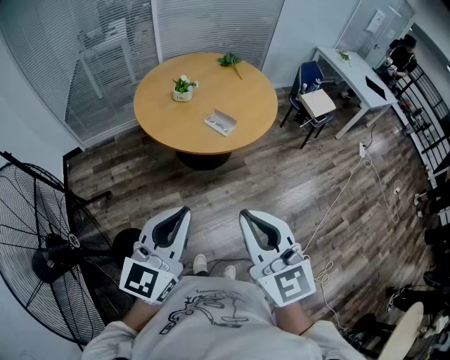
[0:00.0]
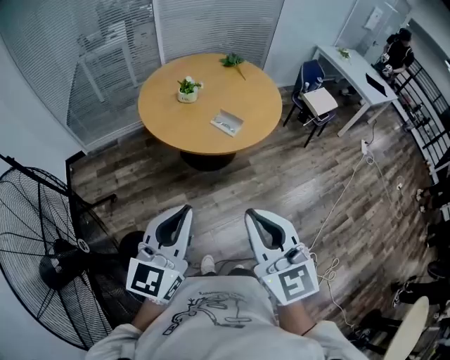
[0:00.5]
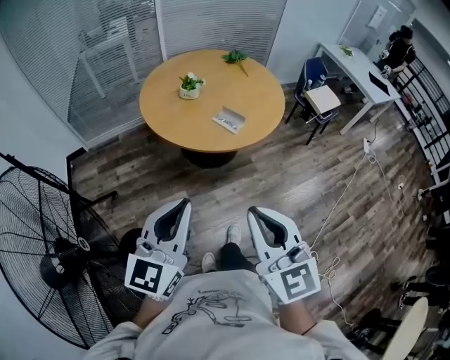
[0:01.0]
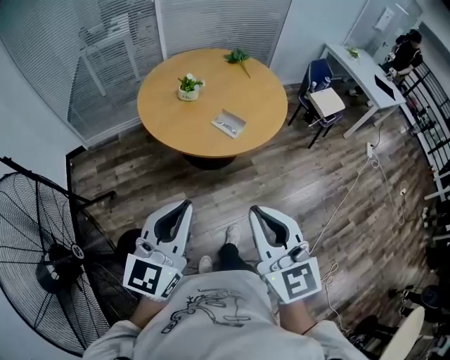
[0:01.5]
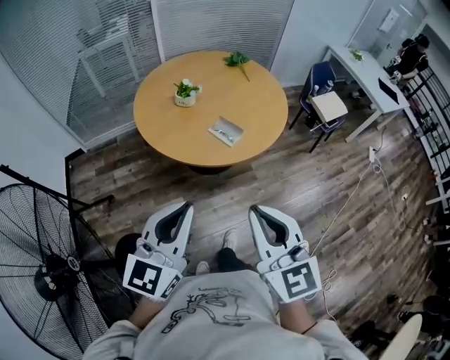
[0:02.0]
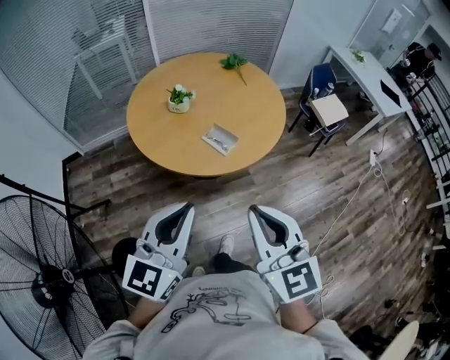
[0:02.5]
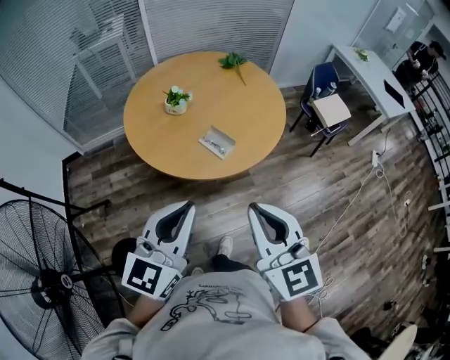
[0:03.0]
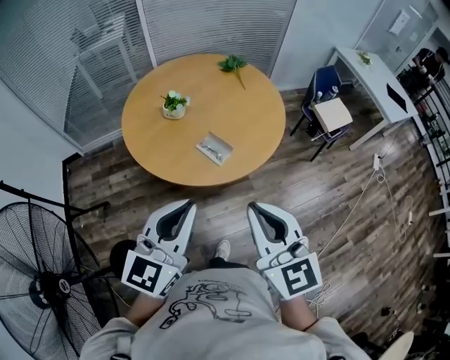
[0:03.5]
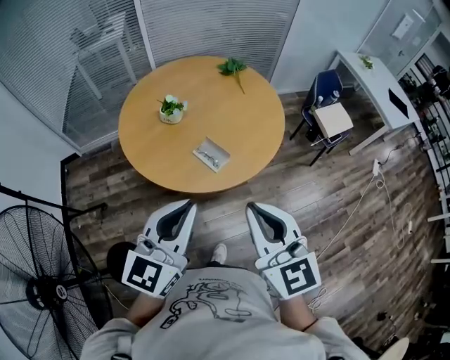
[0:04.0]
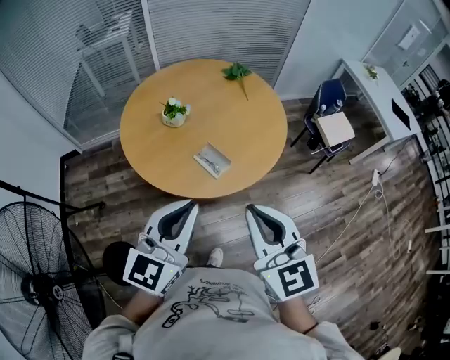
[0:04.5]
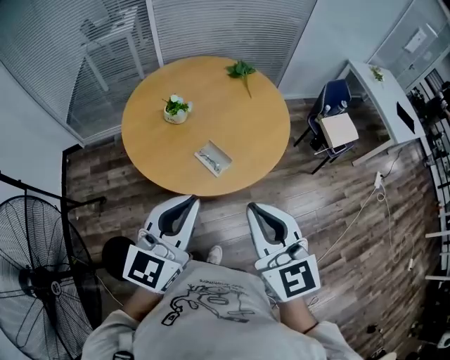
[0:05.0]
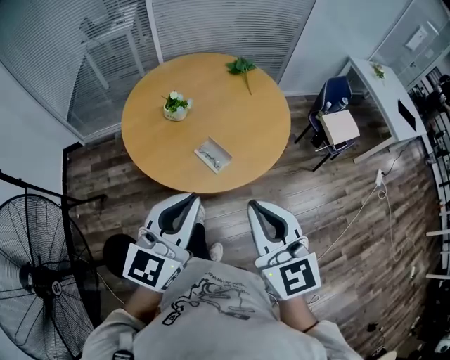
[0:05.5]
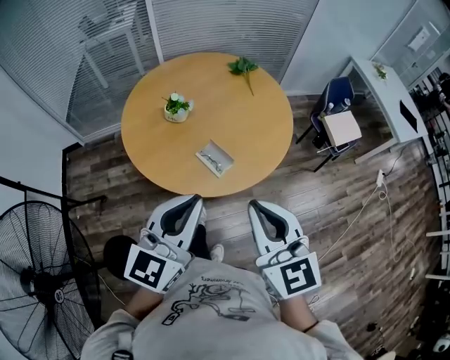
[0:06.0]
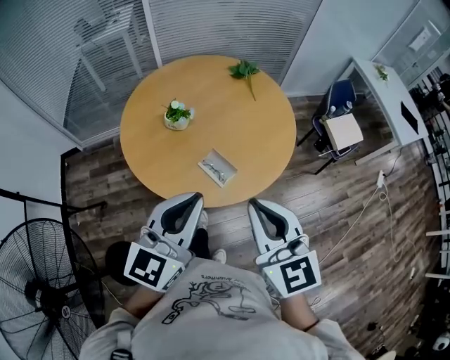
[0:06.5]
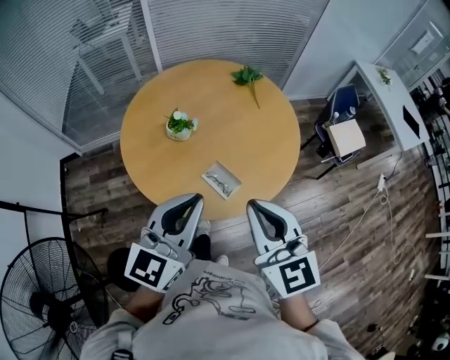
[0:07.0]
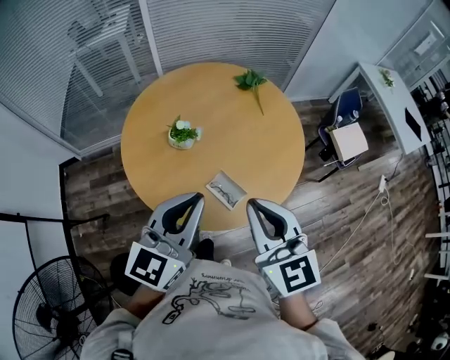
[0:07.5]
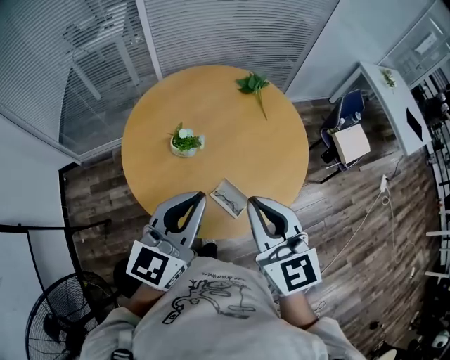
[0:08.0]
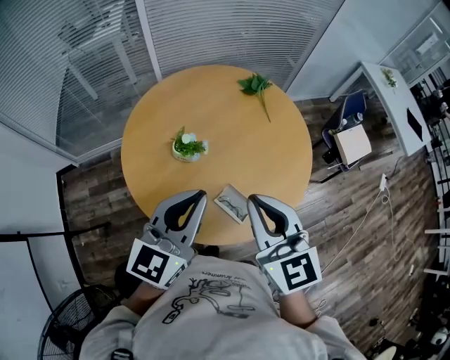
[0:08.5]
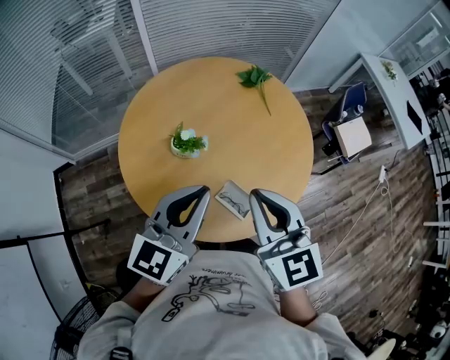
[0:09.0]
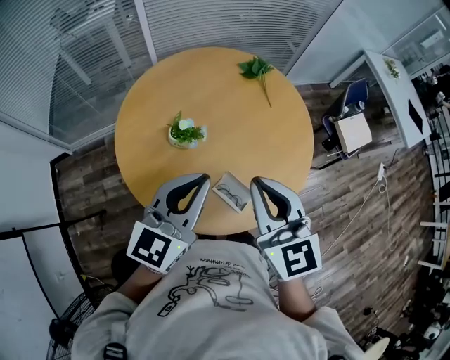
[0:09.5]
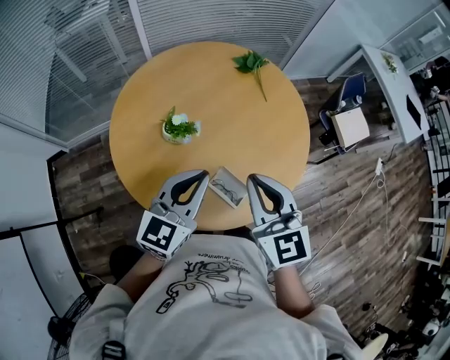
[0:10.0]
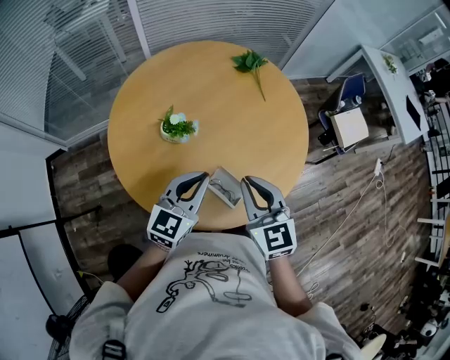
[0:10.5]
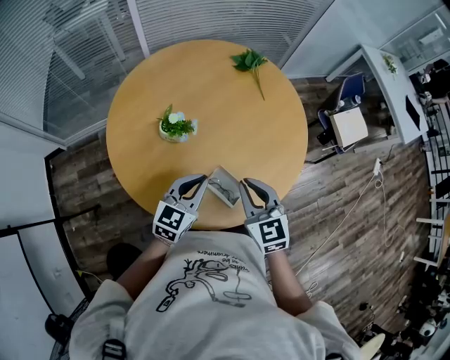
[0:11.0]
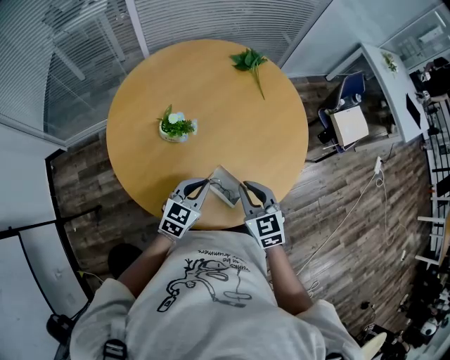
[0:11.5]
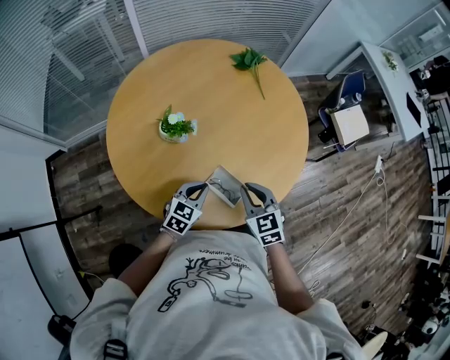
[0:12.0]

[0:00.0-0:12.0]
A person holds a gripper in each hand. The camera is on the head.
0.0 to 2.0 s: Both grippers move forward, roughly 15 cm.
2.0 to 4.0 s: Both grippers move forward and to the right, some 20 cm.
4.0 to 6.0 s: The two grippers go some 5 cm forward.
6.0 to 8.0 s: The left gripper travels forward by some 25 cm, while the right gripper travels forward and to the left by some 25 cm.
8.0 to 10.0 s: The grippers both shift downward and forward by some 10 cm.
10.0 to 12.0 s: The grippers both shift downward by approximately 25 cm. The right gripper swivels some 30 degrees. The left gripper swivels approximately 30 degrees.

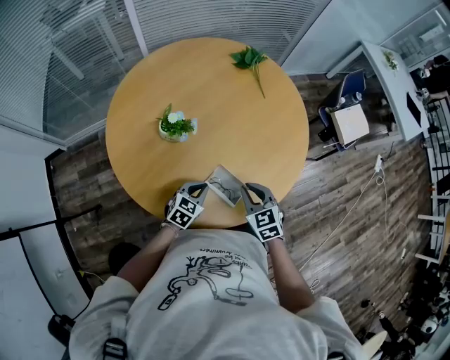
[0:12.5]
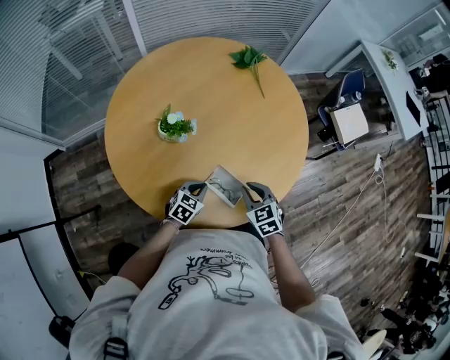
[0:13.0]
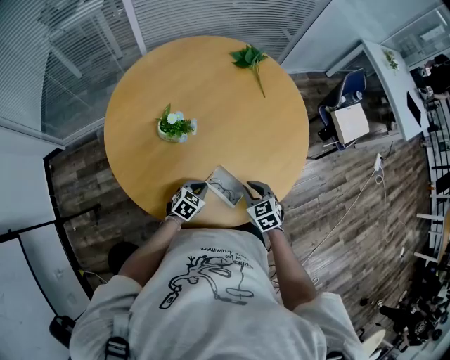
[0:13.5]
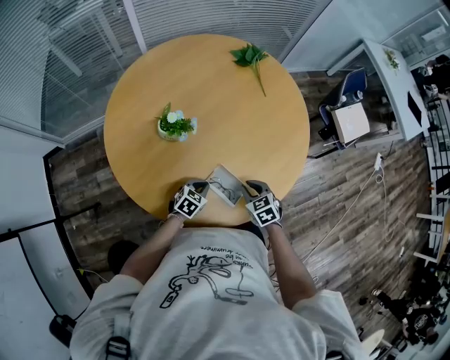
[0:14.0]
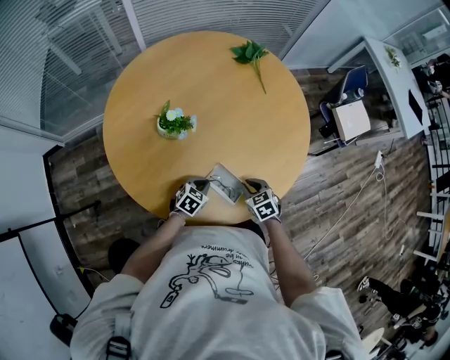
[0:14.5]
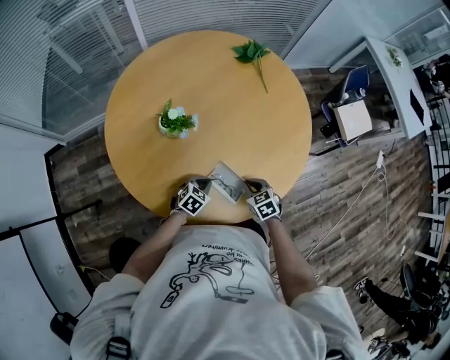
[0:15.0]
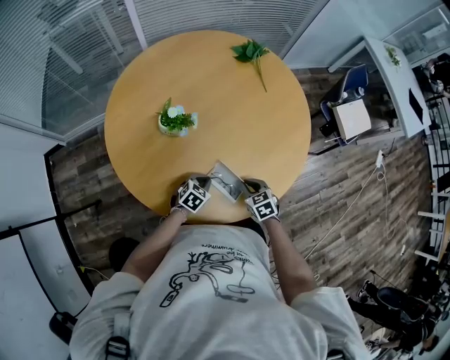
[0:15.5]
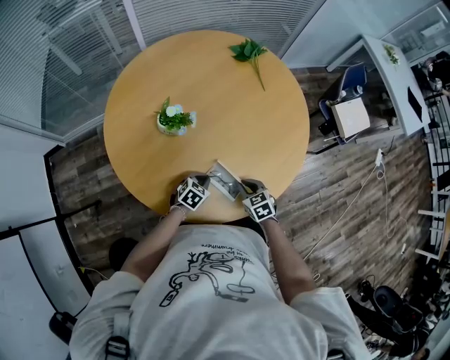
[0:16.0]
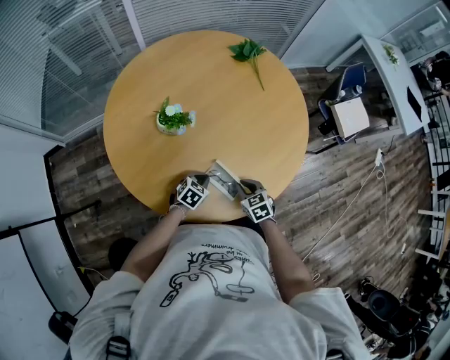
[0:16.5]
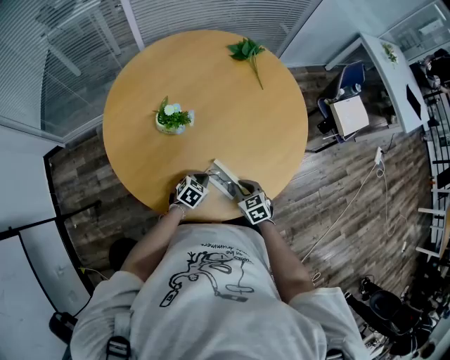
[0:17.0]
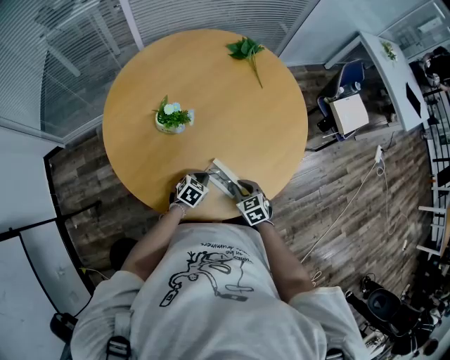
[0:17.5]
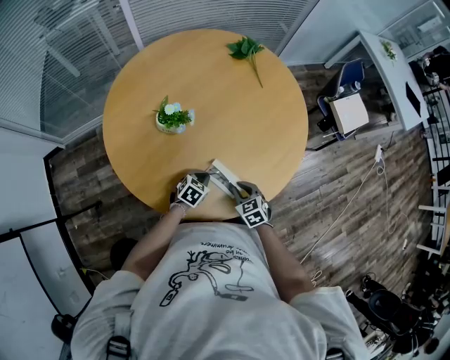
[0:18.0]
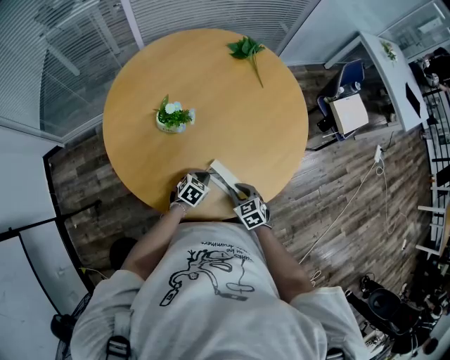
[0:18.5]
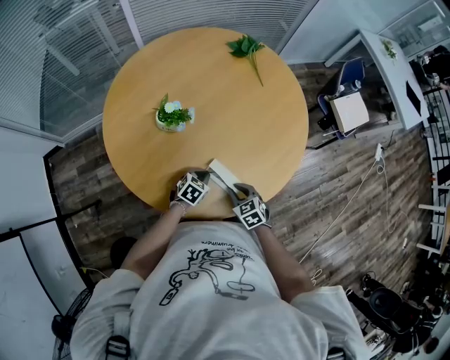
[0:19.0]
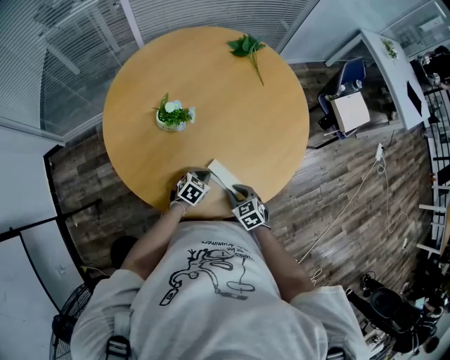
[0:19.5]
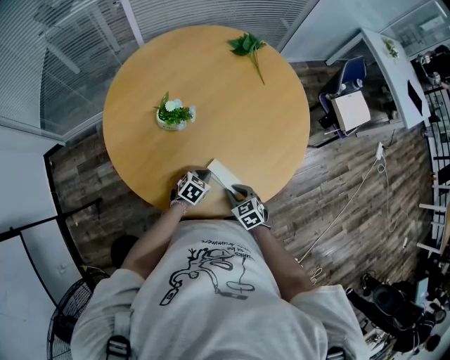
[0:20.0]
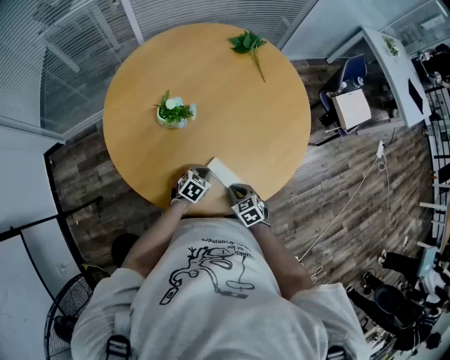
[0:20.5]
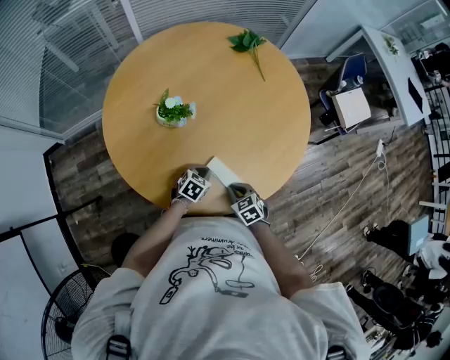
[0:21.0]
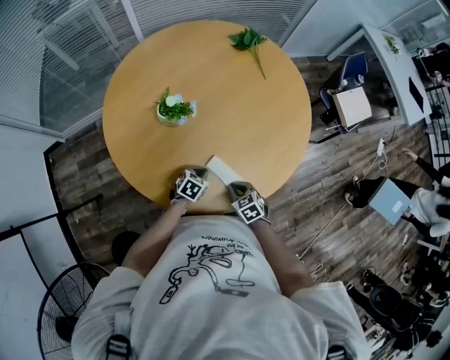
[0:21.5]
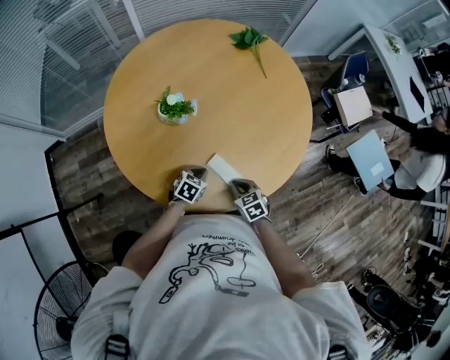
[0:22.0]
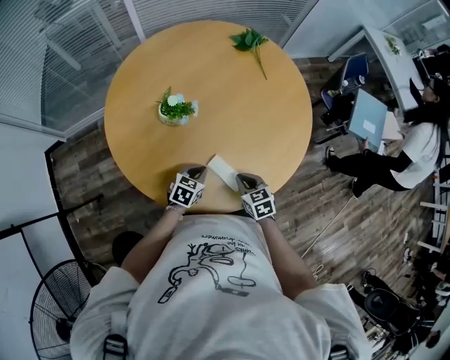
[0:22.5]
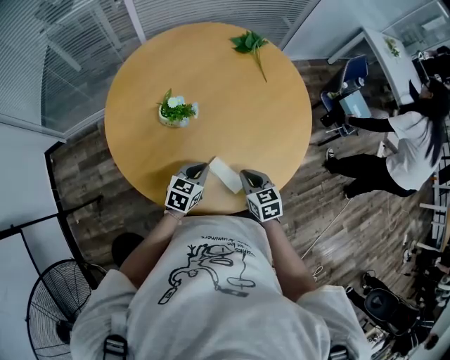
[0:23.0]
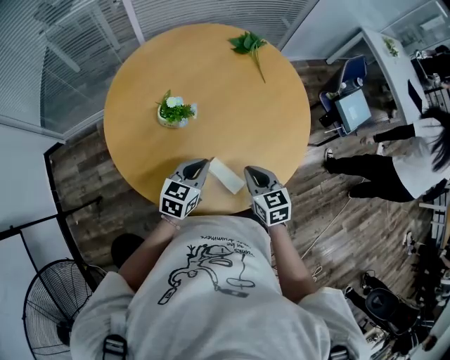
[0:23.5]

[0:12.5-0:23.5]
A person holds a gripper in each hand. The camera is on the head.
12.5 to 14.5 s: The right gripper shifts roughly 15 cm downward. Meanwhile the left gripper travels downward by approximately 10 cm.
14.5 to 18.0 s: The grippers move only a little.
18.0 to 21.5 s: There are only small adjustments of the grippers.
21.5 to 23.5 s: The right gripper goes some 20 cm upward and forward, and swivels roughly 20 degrees; the left gripper travels upward by about 20 cm, and changes its angle by approximately 30 degrees.

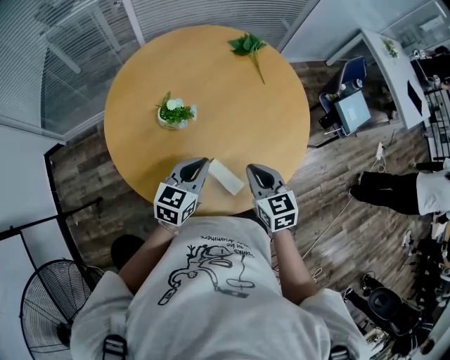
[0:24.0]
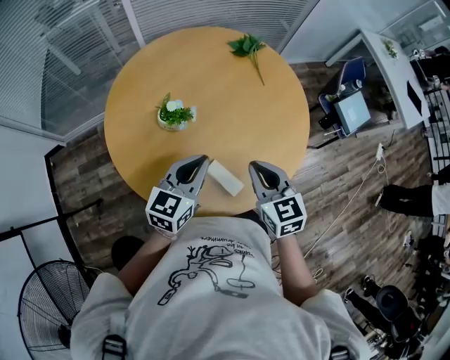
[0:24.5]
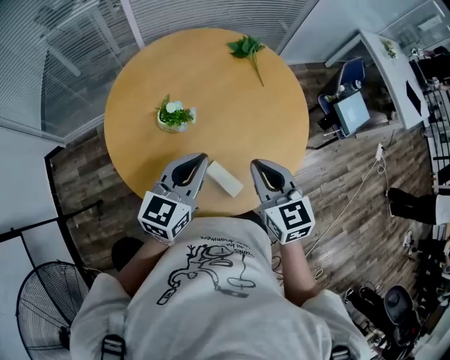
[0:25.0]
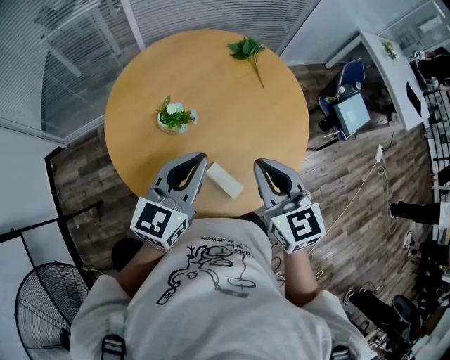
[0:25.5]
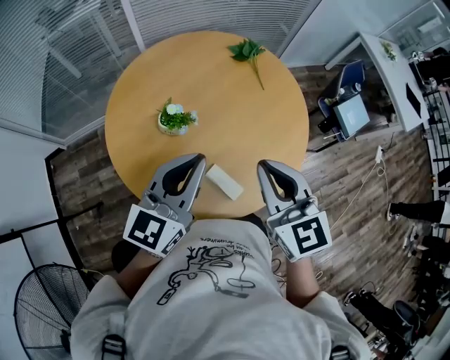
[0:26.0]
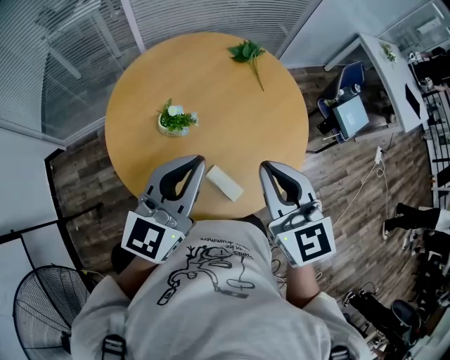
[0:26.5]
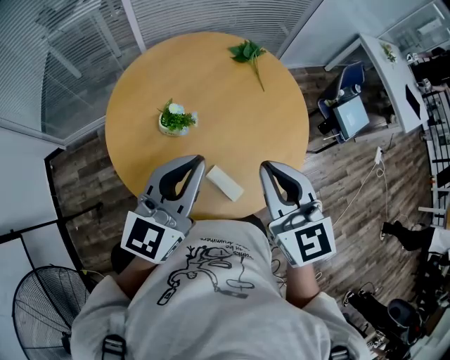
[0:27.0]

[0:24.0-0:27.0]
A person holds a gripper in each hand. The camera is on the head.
24.0 to 25.5 s: Both grippers move upward, about 15 cm.
25.5 to 27.0 s: The two grippers go some 5 cm upward.

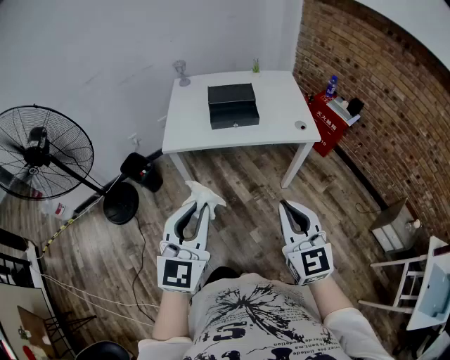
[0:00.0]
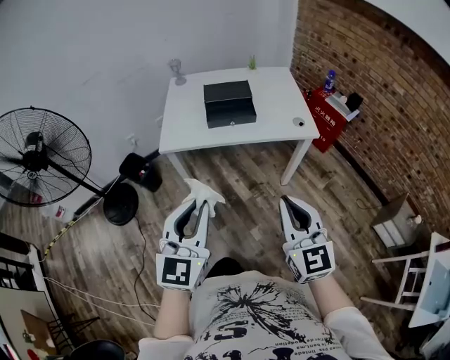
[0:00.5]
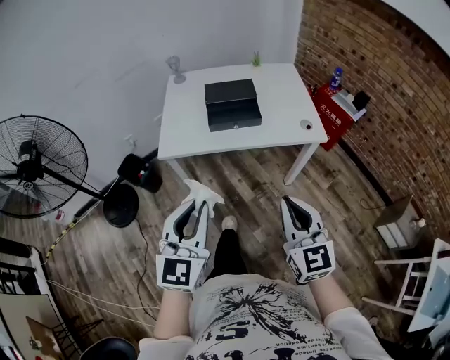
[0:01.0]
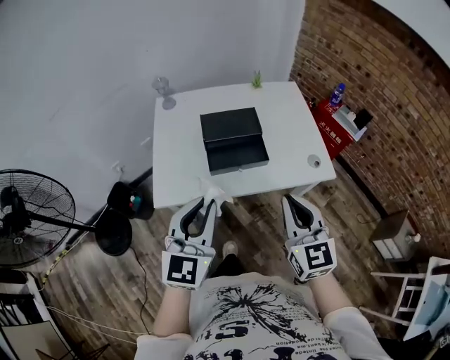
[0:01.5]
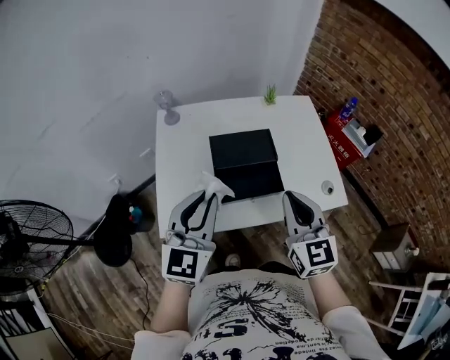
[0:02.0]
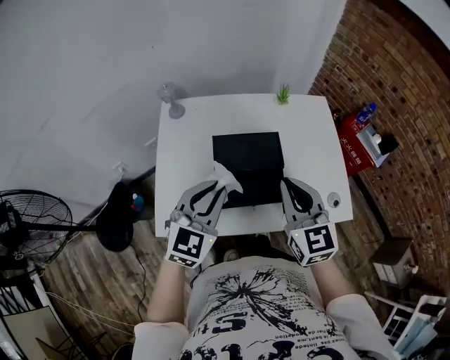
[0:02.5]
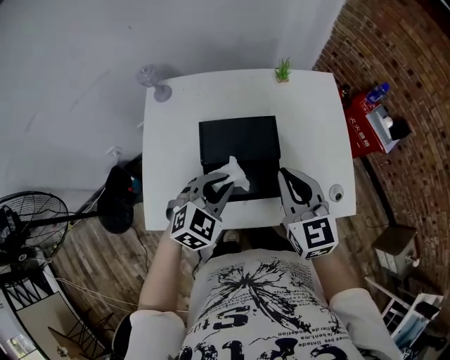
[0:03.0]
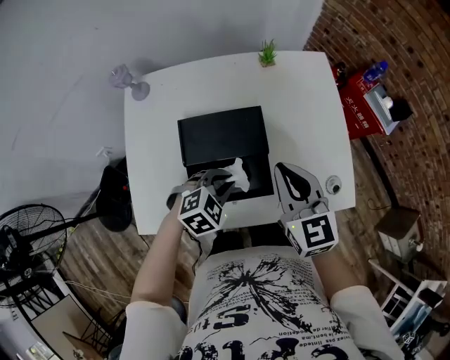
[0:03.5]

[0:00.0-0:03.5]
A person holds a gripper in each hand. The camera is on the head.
0.0 to 2.0 s: The two grippers travel together, forward, approximately 50 cm.
2.0 to 3.5 s: The right gripper travels forward and downward by some 20 cm, while the left gripper goes some 35 cm downward, forward and to the right, and tips its fingers downward by roughly 50 degrees.
